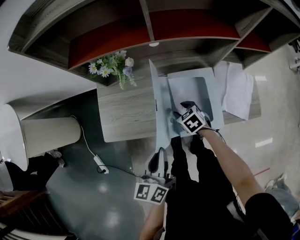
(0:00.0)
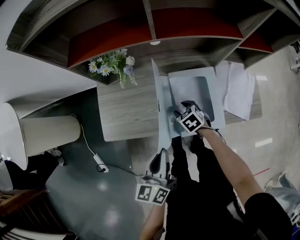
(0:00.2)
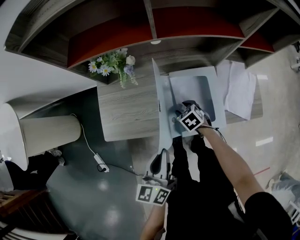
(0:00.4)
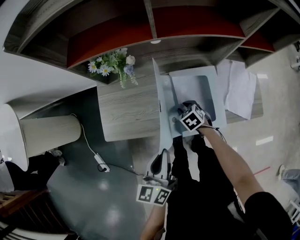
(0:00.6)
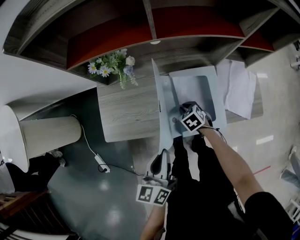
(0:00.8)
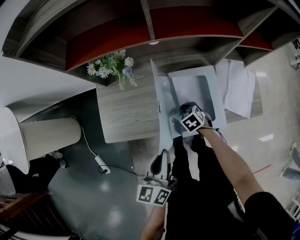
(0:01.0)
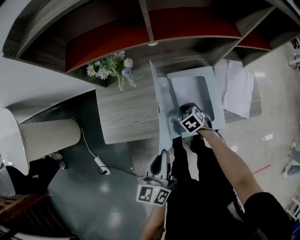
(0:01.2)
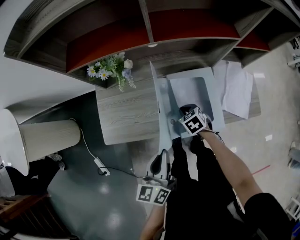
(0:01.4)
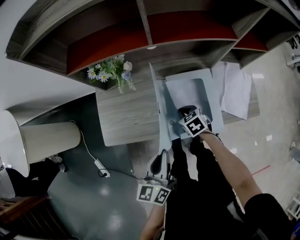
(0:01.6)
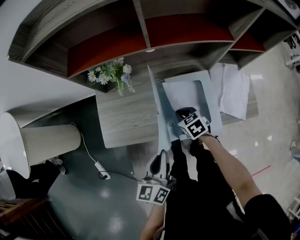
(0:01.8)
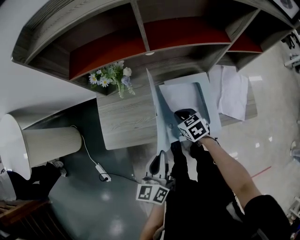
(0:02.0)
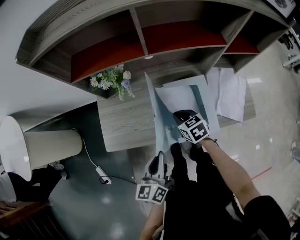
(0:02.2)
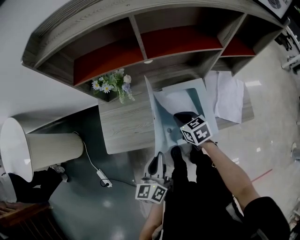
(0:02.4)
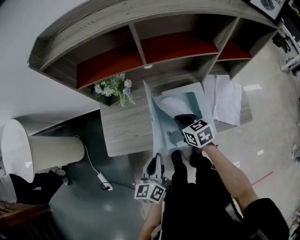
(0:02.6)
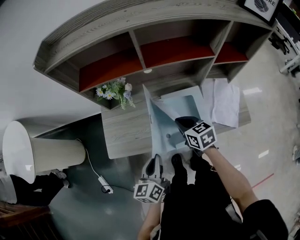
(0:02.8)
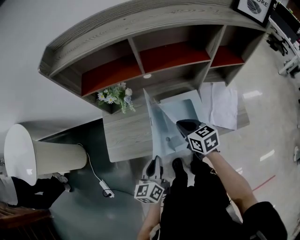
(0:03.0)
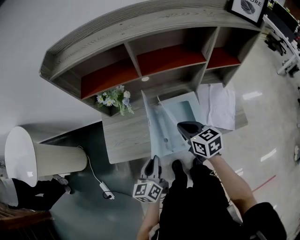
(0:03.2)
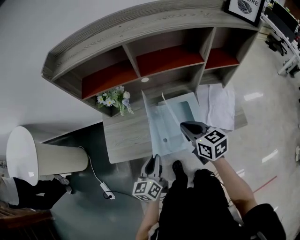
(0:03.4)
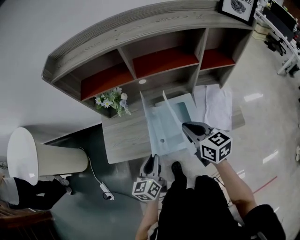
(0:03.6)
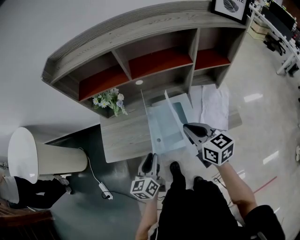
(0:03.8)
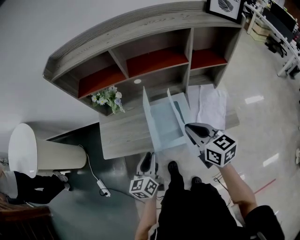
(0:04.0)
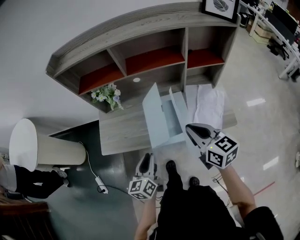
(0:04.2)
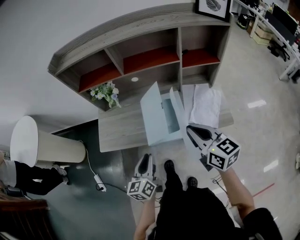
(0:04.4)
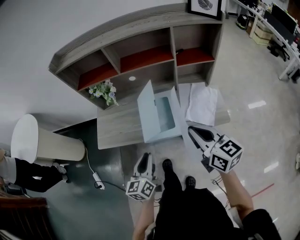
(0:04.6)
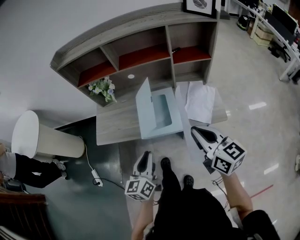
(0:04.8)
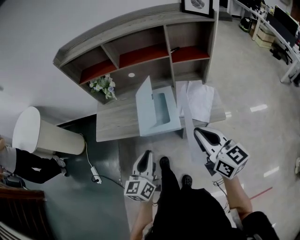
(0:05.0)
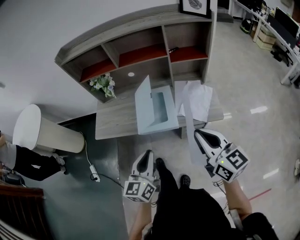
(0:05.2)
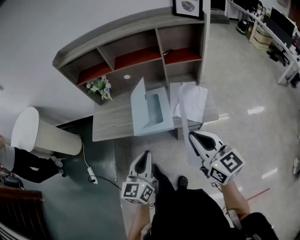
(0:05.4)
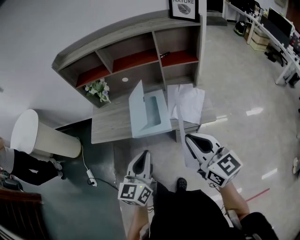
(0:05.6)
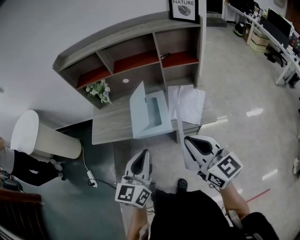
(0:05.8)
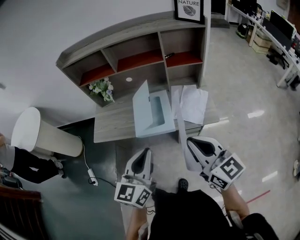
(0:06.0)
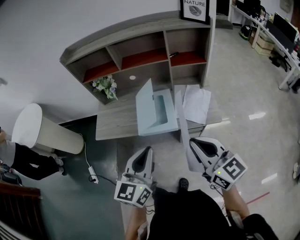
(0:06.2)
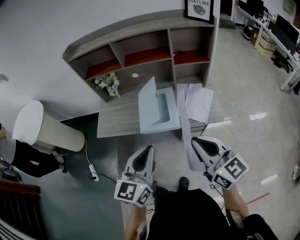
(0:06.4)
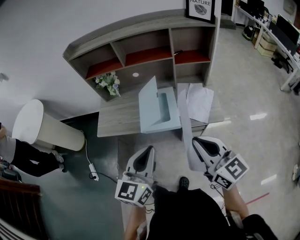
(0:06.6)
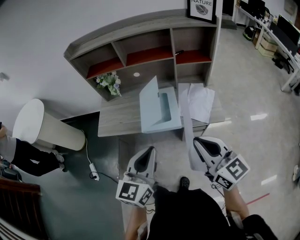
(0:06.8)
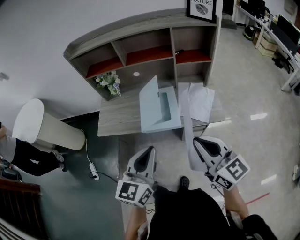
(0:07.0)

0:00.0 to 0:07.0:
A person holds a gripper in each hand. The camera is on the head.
0:00.0 to 0:01.4: The right gripper closes.
0:01.4 to 0:02.8: The right gripper moves upward, approximately 15 cm, and changes its angle by some 30 degrees.
0:02.8 to 0:04.2: The left gripper shifts about 10 cm to the right and backward. The right gripper shifts approximately 25 cm upward, backward and to the right, and rotates about 20 degrees.
0:04.2 to 0:05.6: The left gripper heads backward, upward and to the right, covering about 25 cm, while the right gripper is displaced backward and to the right by roughly 20 cm.
0:05.6 to 0:07.0: The left gripper moves approximately 5 cm.

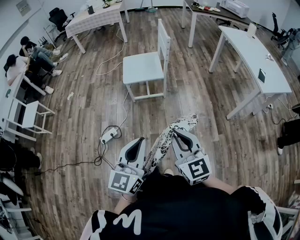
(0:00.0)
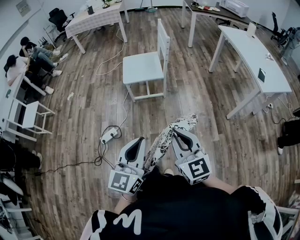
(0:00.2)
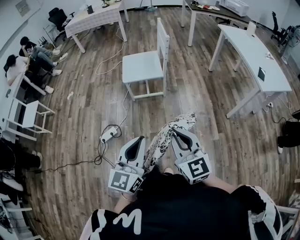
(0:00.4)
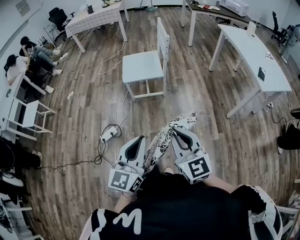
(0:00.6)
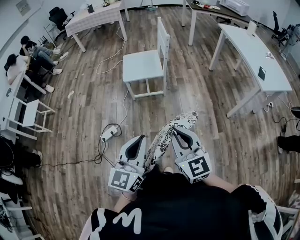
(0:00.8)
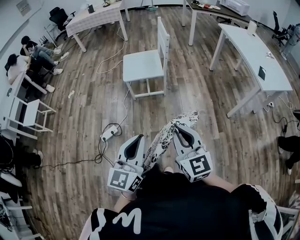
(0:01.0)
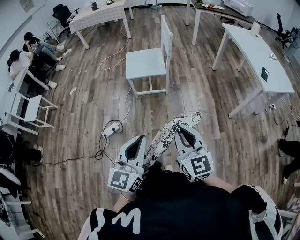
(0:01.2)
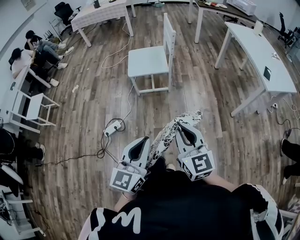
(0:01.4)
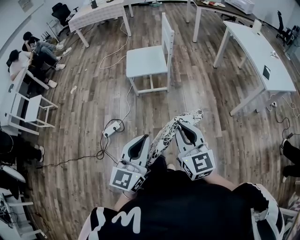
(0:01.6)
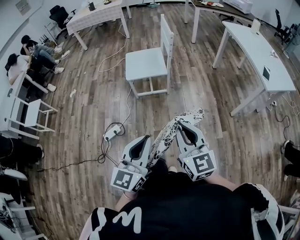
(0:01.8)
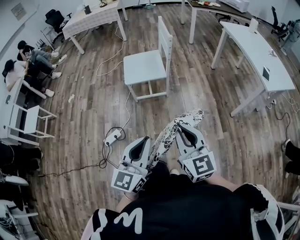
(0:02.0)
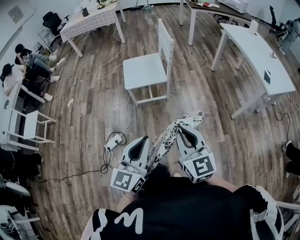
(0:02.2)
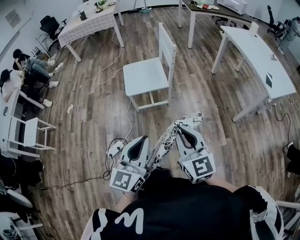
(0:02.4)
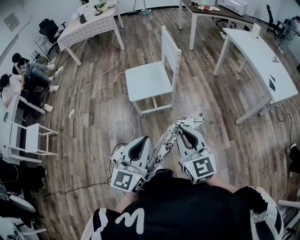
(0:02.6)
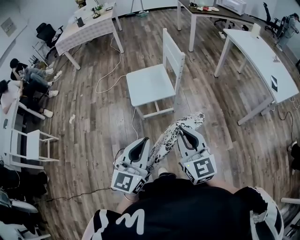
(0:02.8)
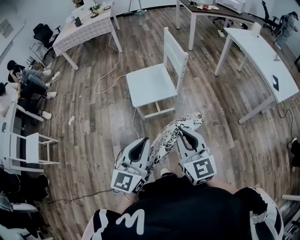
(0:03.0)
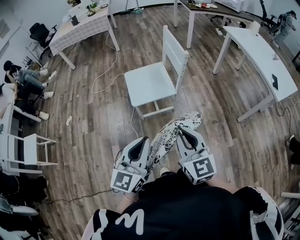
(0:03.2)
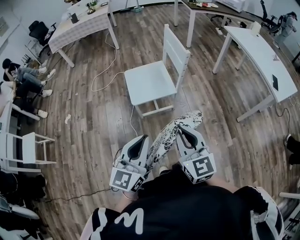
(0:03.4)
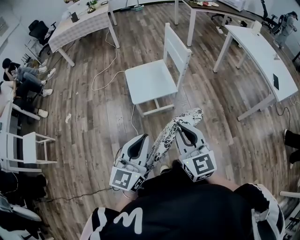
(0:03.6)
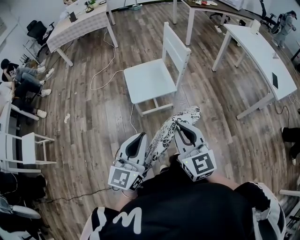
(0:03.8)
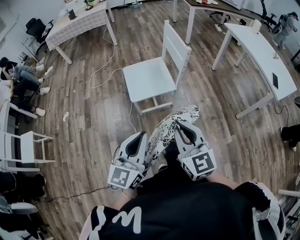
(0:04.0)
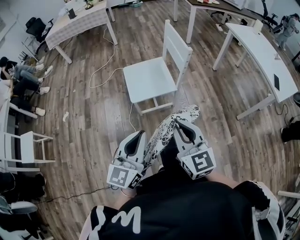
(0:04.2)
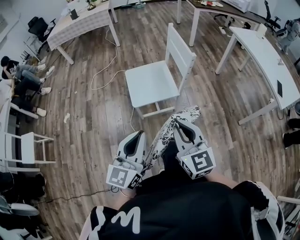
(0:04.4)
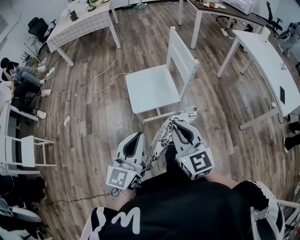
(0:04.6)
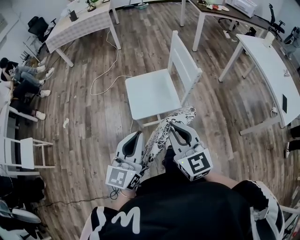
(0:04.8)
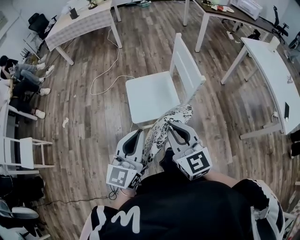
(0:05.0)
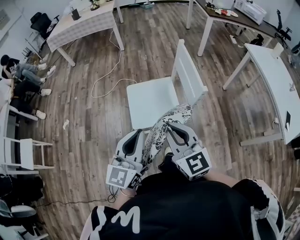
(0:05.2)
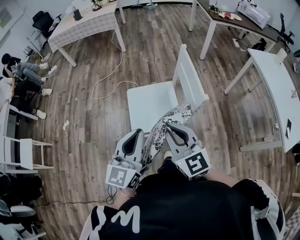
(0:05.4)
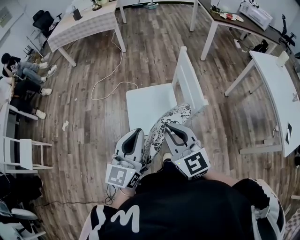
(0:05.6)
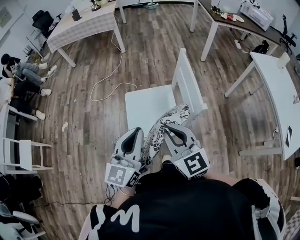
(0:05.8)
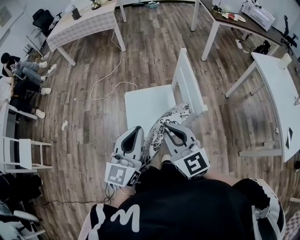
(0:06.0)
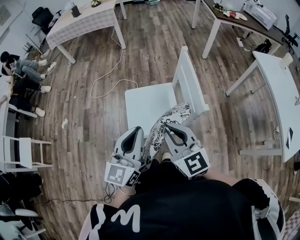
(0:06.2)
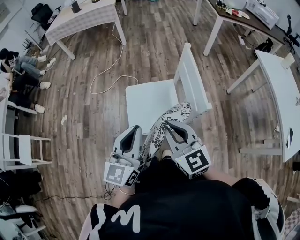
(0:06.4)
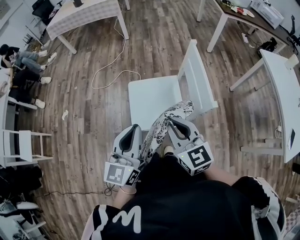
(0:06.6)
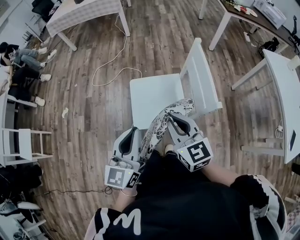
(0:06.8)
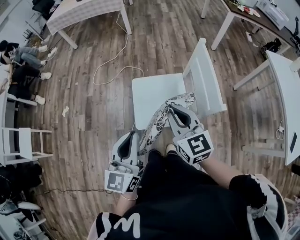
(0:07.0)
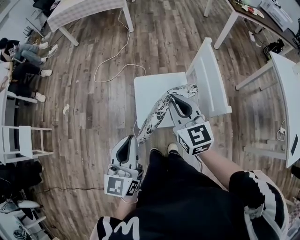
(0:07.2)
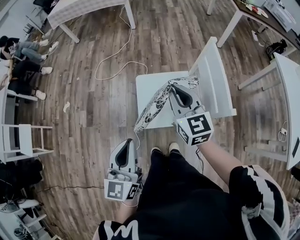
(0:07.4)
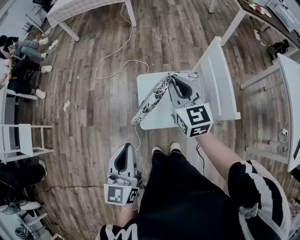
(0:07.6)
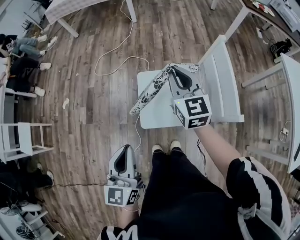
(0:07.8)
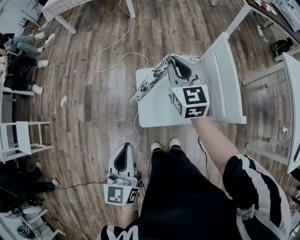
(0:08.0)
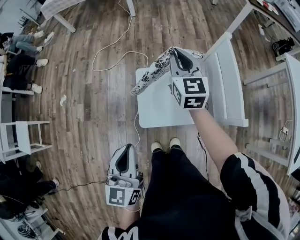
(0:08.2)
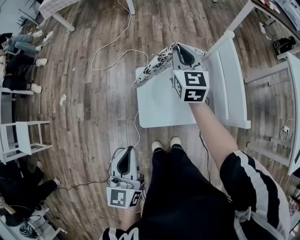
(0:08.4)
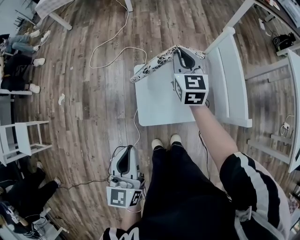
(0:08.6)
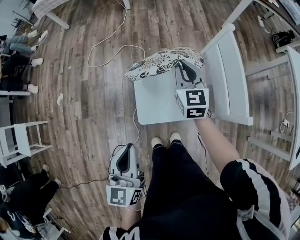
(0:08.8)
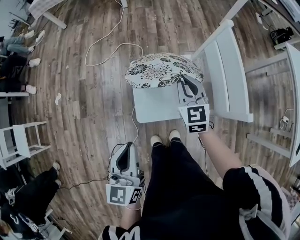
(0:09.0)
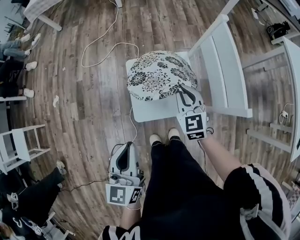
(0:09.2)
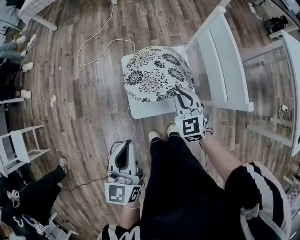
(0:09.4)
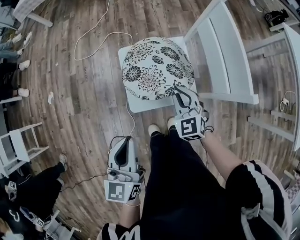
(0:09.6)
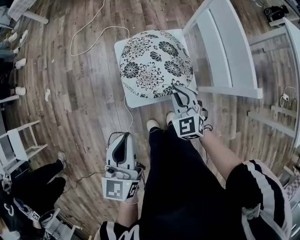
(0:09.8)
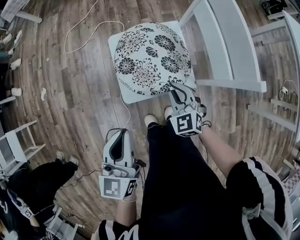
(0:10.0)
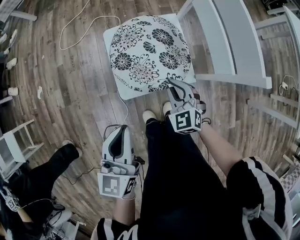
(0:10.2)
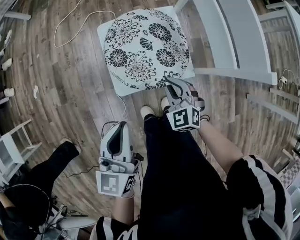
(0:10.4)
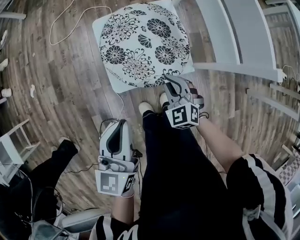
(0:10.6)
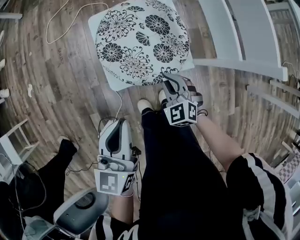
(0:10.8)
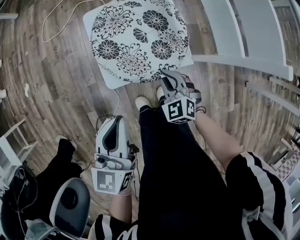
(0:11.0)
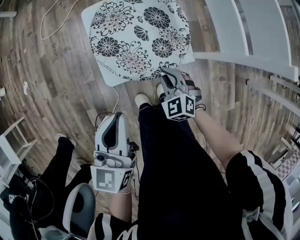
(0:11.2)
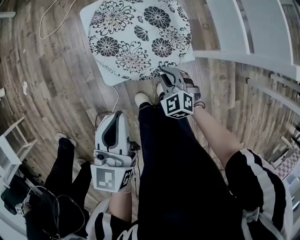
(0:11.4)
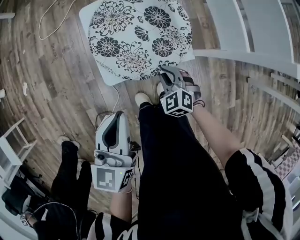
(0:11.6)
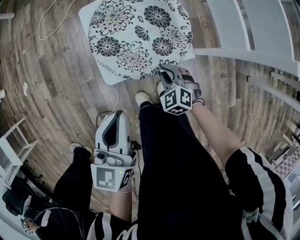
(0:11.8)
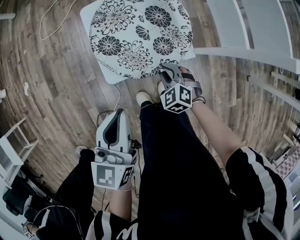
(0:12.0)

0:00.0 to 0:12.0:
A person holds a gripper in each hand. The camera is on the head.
0:00.0 to 0:01.6: The grippers make only small movements.
0:01.6 to 0:03.0: The grippers both shift forward and to the left by about 25 cm.
0:03.0 to 0:04.4: Both grippers travel together forward, roughly 10 cm.
0:04.4 to 0:06.0: Both grippers move forward, approximately 25 cm.
0:06.0 to 0:07.6: The right gripper travels forward by about 20 cm, while the left gripper heads to the left and downward, covering roughly 15 cm.
0:07.6 to 0:09.0: The left gripper goes roughly 5 cm downward, while the right gripper travels downward by some 15 cm.
0:09.0 to 0:10.4: The left gripper shifts roughly 10 cm downward, while the right gripper shifts approximately 25 cm downward and backward, and swivels about 30 degrees.
0:10.4 to 0:12.0: The left gripper moves downward, roughly 5 cm; the right gripper heads downward, covering about 15 cm.

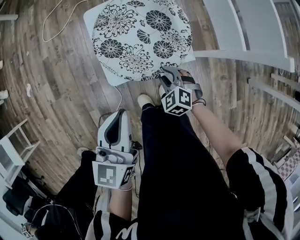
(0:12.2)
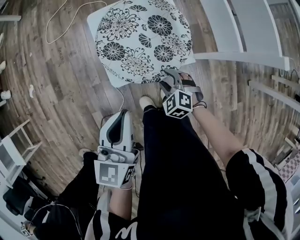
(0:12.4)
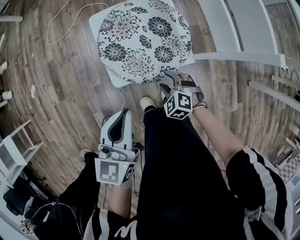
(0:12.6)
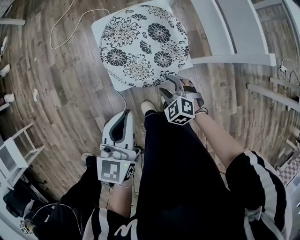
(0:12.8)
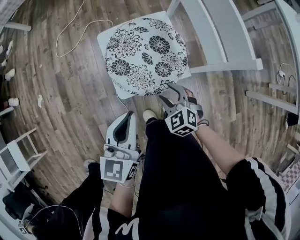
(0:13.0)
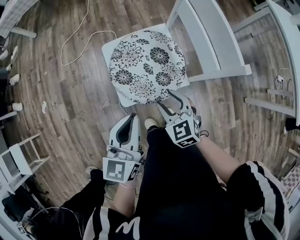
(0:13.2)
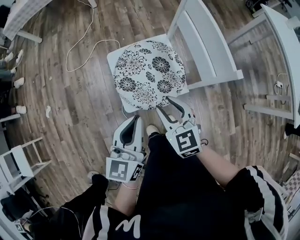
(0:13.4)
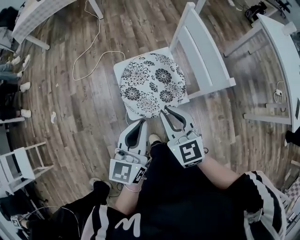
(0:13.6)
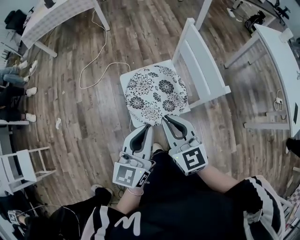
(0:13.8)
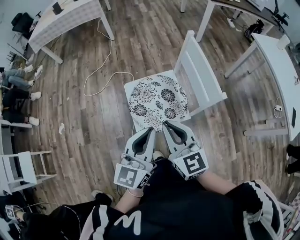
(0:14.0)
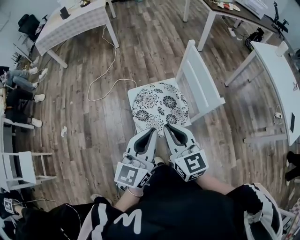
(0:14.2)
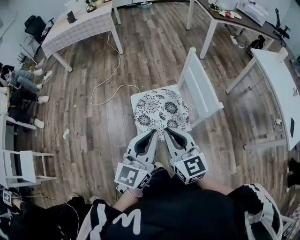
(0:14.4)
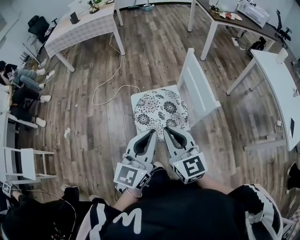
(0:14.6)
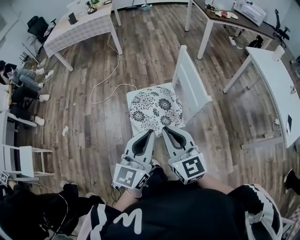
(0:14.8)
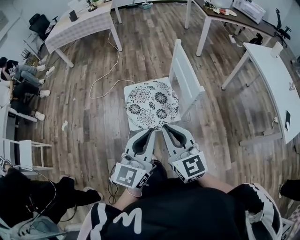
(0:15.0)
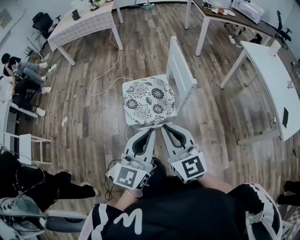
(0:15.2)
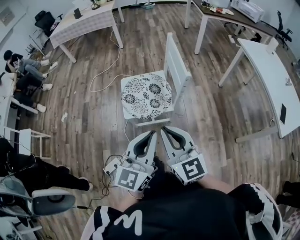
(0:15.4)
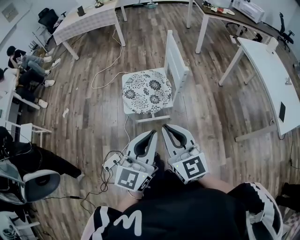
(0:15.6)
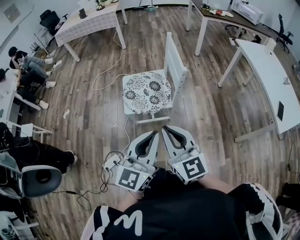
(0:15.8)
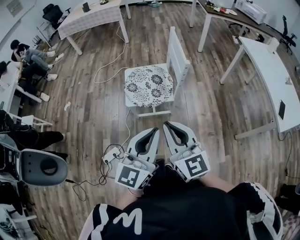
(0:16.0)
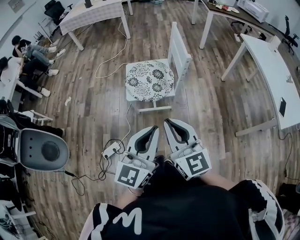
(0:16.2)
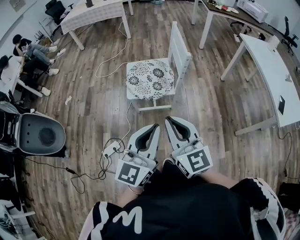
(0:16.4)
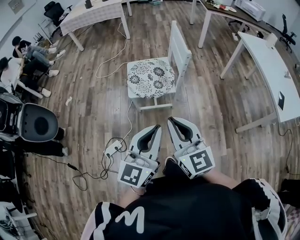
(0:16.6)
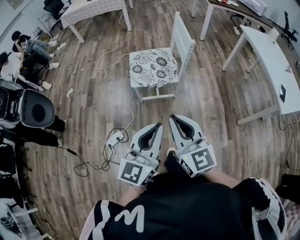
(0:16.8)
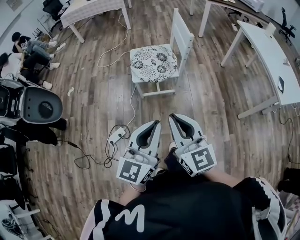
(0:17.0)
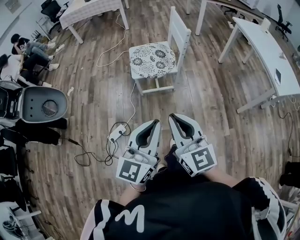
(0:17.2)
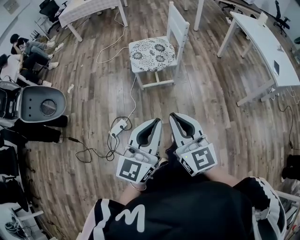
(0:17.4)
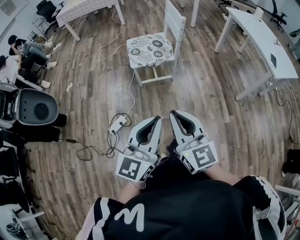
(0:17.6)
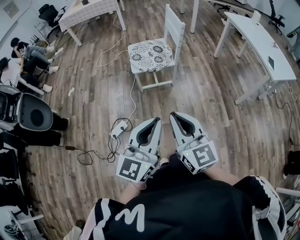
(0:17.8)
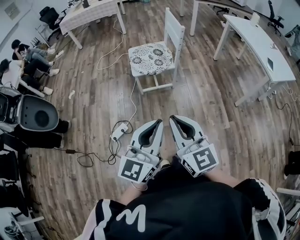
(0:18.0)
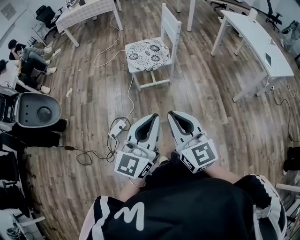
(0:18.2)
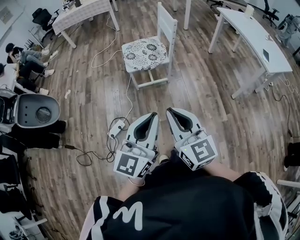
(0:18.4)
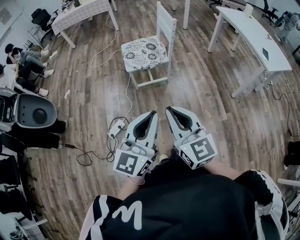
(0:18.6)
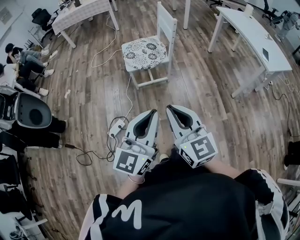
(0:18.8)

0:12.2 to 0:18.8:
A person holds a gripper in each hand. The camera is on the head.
0:12.2 to 0:13.8: The left gripper is displaced upward by about 20 cm, while the right gripper travels upward by some 40 cm, points its fingers roughly 40 degrees further upward, and opens, then closes once more.
0:13.8 to 0:15.4: The grippers both shift backward, to the right and upward by approximately 25 cm.
0:15.4 to 0:17.2: Both grippers move backward, approximately 25 cm.
0:17.2 to 0:18.8: Both grippers travel together backward, about 10 cm.
